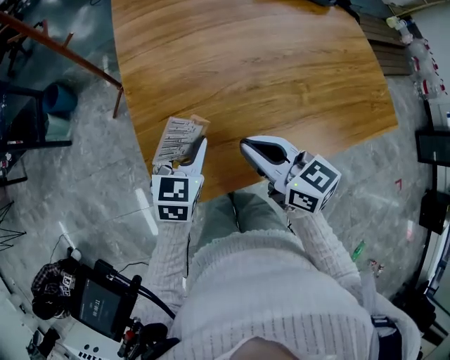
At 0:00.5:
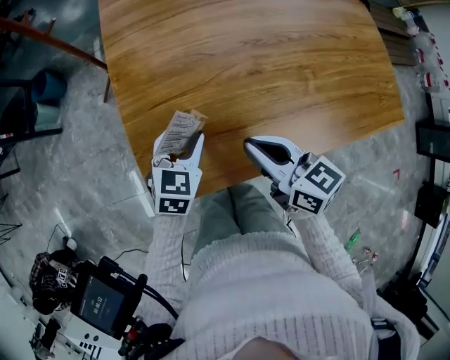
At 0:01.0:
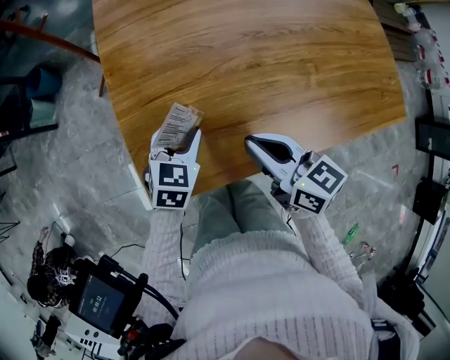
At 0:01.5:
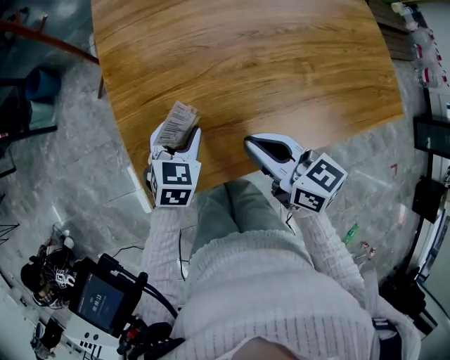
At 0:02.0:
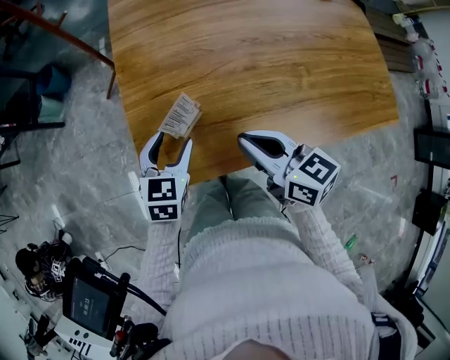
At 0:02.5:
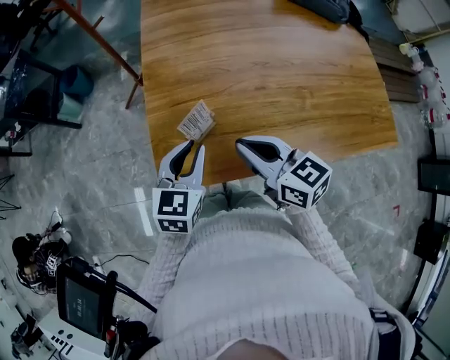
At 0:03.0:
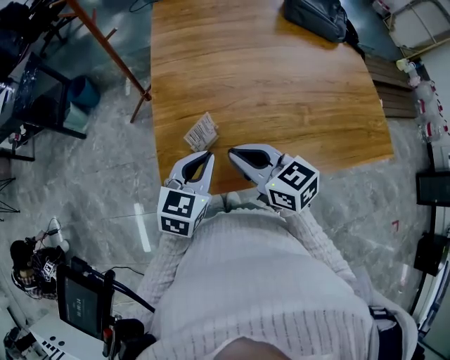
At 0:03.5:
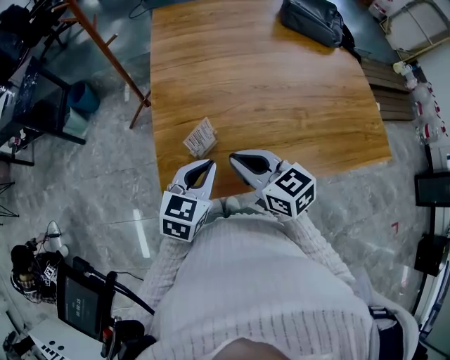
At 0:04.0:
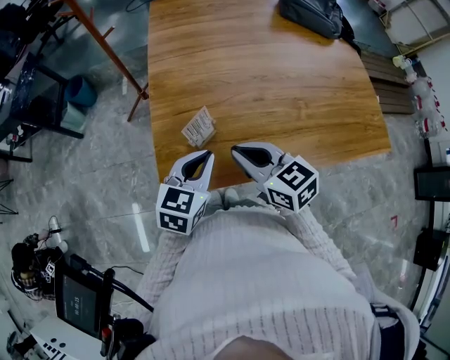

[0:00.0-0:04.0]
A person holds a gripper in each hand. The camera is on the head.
0:00.0 to 0:02.0: The left gripper shifts by some 5 cm.
0:02.0 to 0:04.0: The left gripper moves upward, approximately 10 cm, and closes up. The right gripper shifts by about 5 cm.

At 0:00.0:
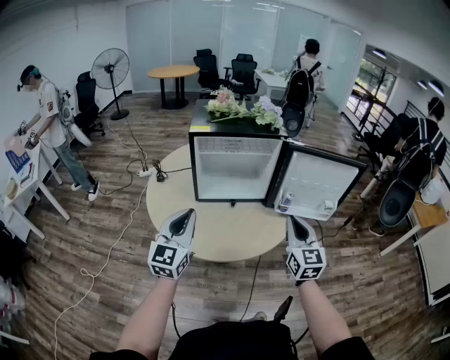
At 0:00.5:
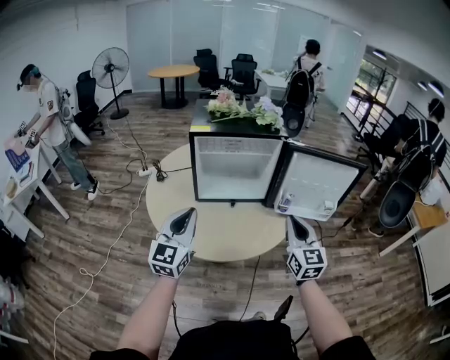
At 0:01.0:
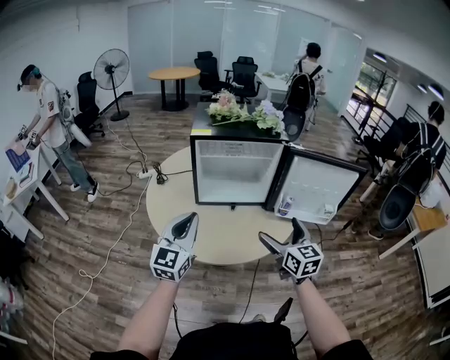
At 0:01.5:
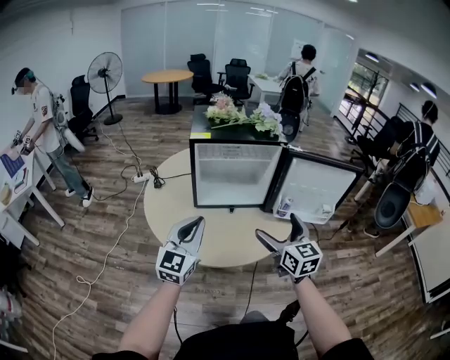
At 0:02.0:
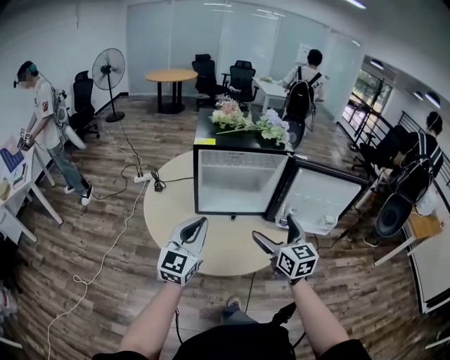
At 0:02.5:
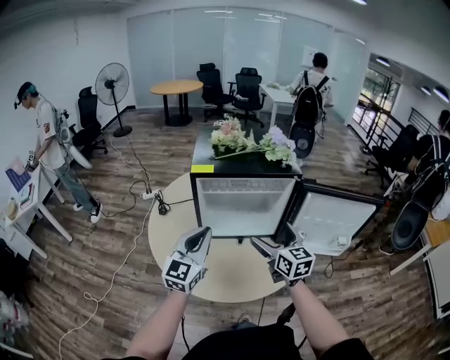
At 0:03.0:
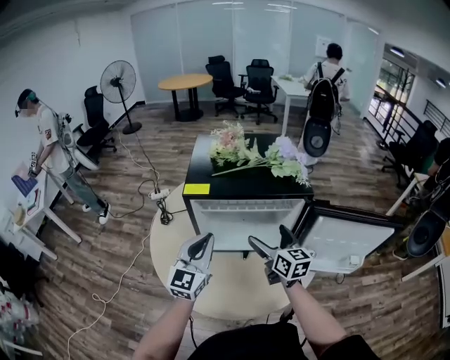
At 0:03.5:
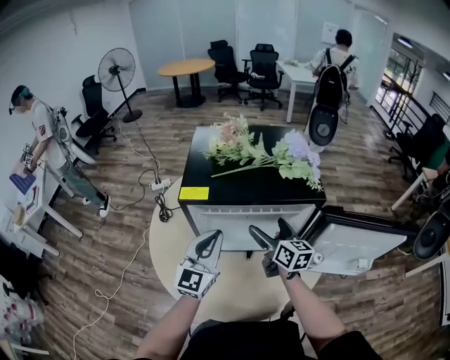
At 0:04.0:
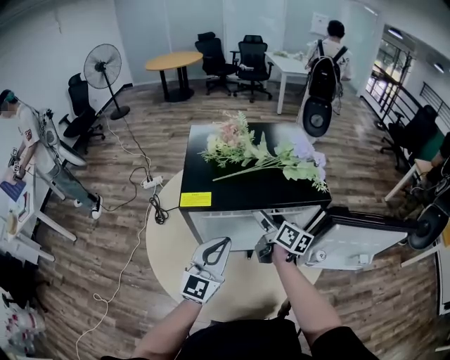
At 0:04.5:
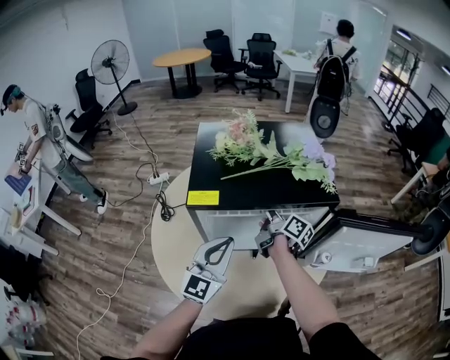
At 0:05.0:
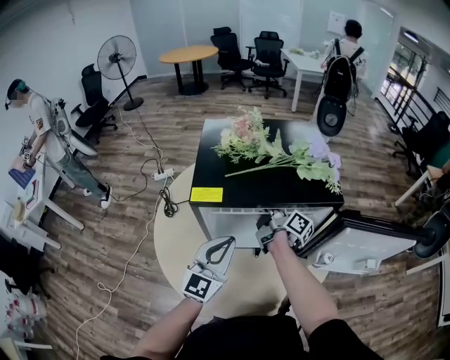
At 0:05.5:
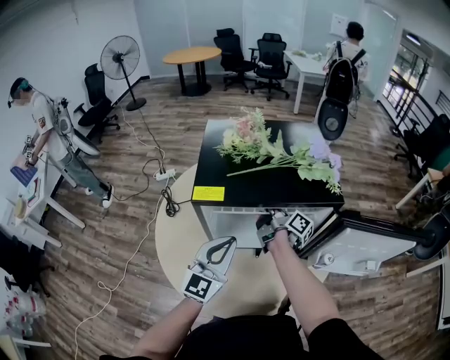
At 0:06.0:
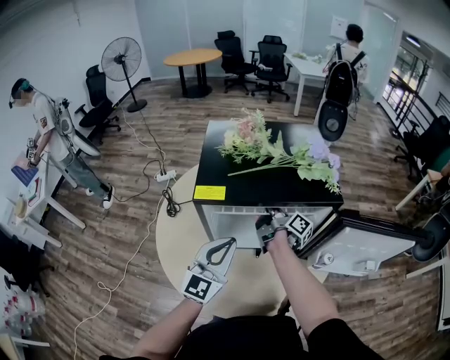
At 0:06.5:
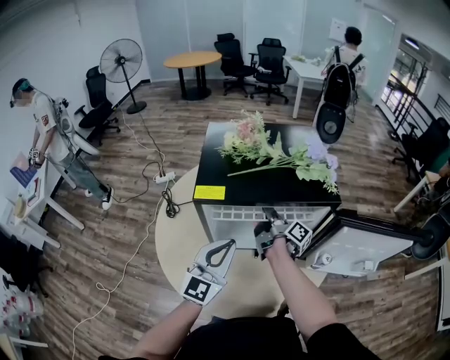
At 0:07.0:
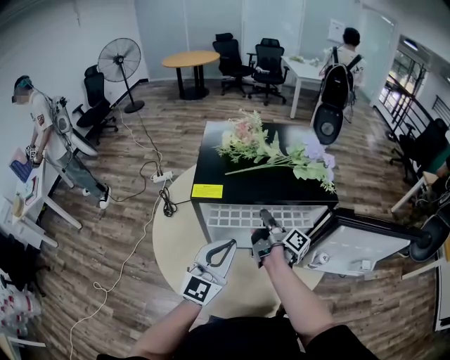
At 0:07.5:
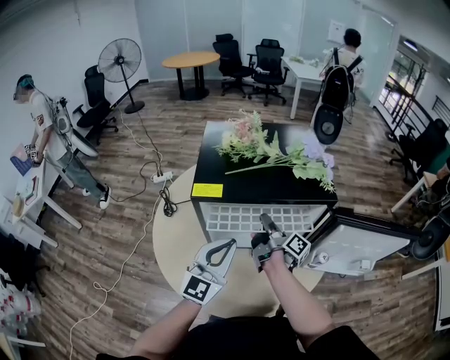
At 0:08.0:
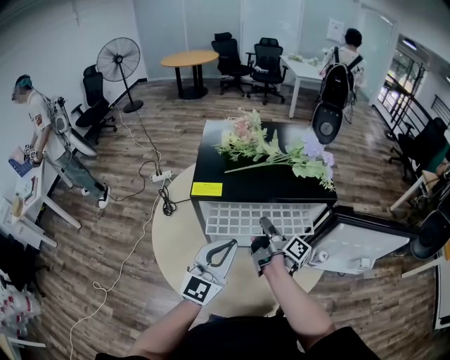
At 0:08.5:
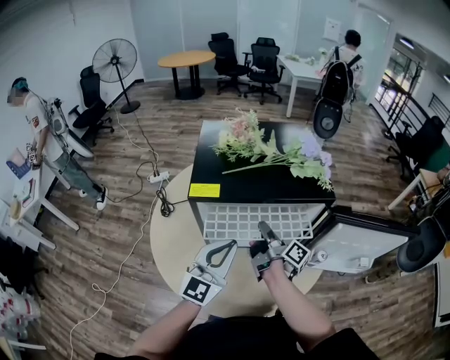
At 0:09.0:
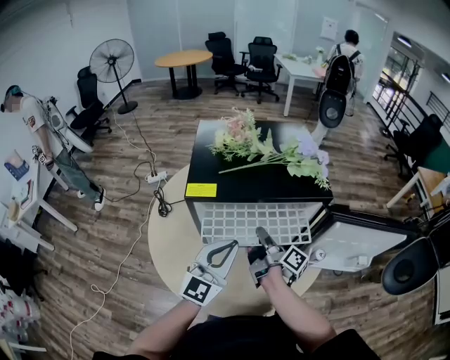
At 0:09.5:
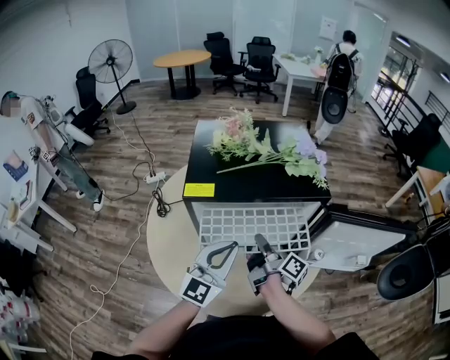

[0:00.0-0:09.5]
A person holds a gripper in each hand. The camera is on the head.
0:00.0 to 0:02.0: The right gripper heads to the left and forward, covering some 10 cm, and opens its fingers.
0:02.0 to 0:04.0: The grippers both shift forward by some 30 cm. The right gripper rotates around the line of its fingers by about 40 degrees, clockwise from behind.
0:04.0 to 0:05.5: The right gripper moves about 5 cm, changes its angle by some 30 degrees, and closes.
0:05.5 to 0:07.5: The right gripper moves backward, about 5 cm.
0:07.5 to 0:09.5: The right gripper is displaced backward by about 10 cm.

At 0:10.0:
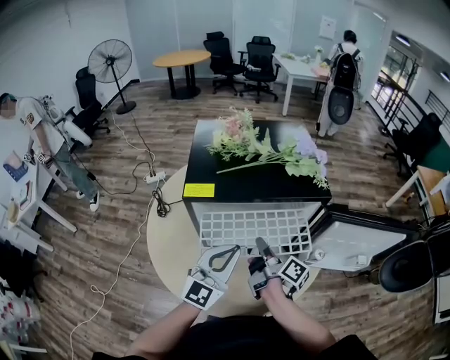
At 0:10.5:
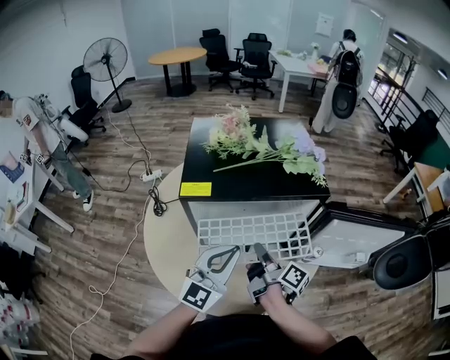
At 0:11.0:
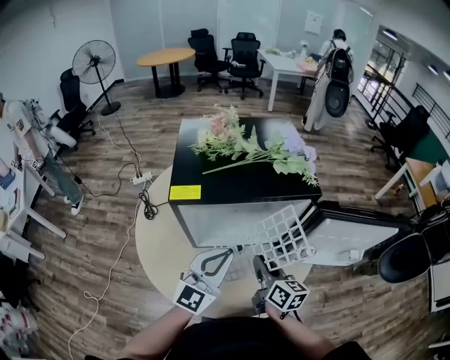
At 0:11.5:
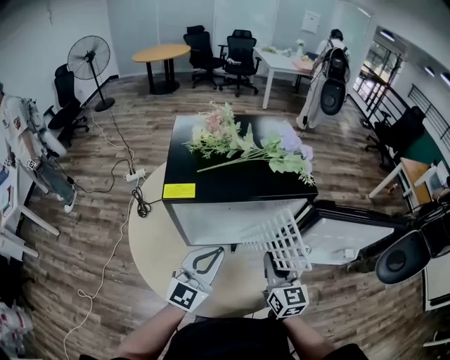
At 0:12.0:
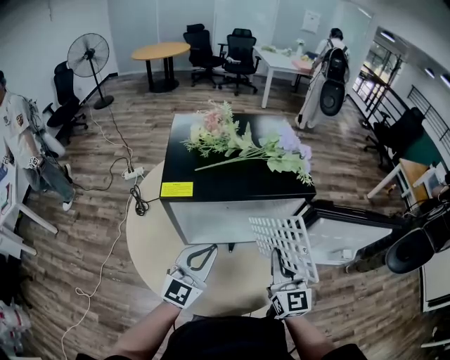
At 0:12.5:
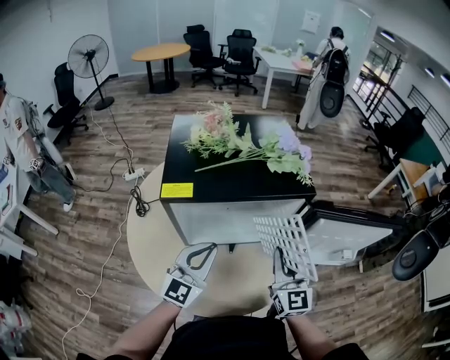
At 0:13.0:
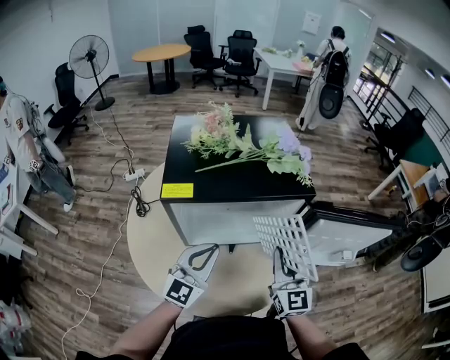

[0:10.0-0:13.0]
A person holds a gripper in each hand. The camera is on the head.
0:10.0 to 0:11.5: The right gripper heads to the right, covering roughly 5 cm, and rotates around the line of its fingers by about 70 degrees, counterclockwise from behind.
0:11.5 to 0:13.0: The right gripper shifts by roughly 5 cm.

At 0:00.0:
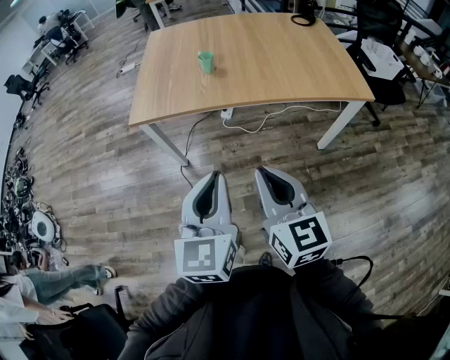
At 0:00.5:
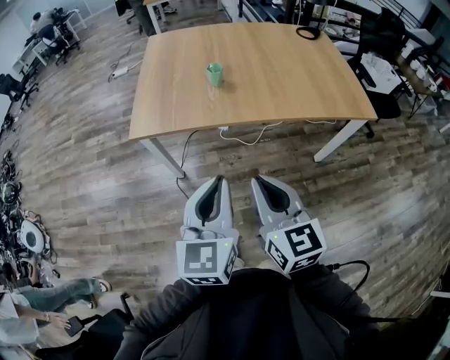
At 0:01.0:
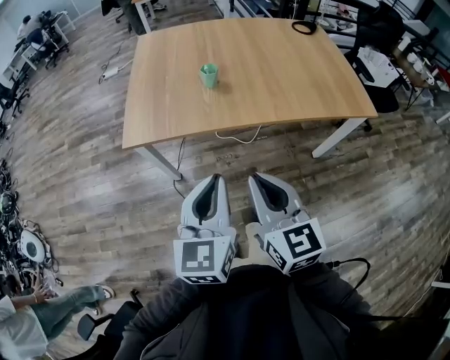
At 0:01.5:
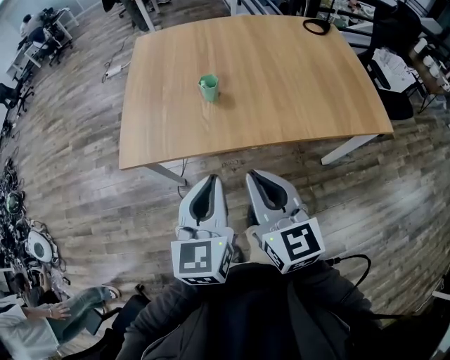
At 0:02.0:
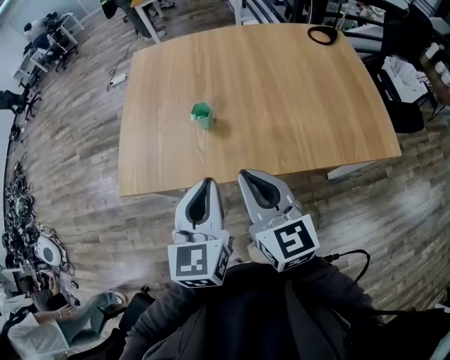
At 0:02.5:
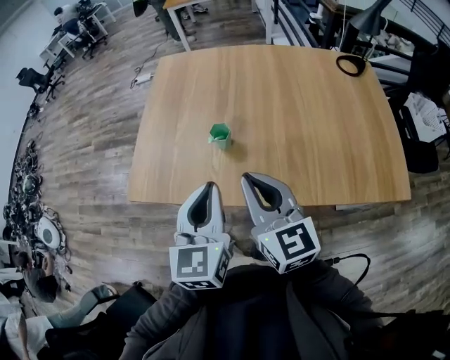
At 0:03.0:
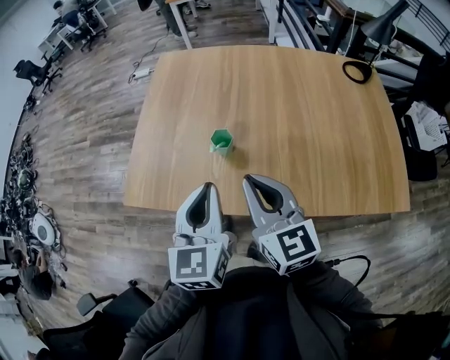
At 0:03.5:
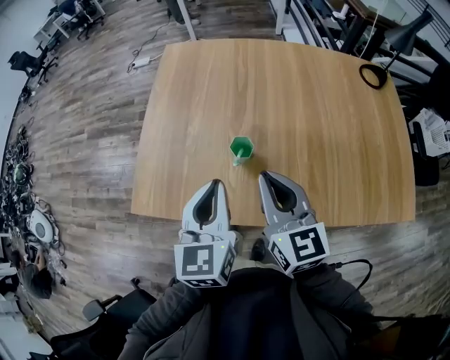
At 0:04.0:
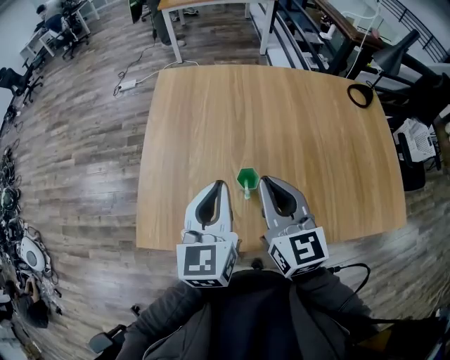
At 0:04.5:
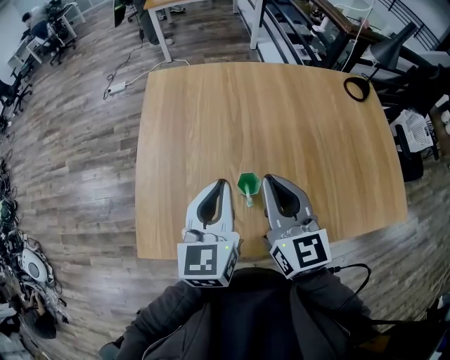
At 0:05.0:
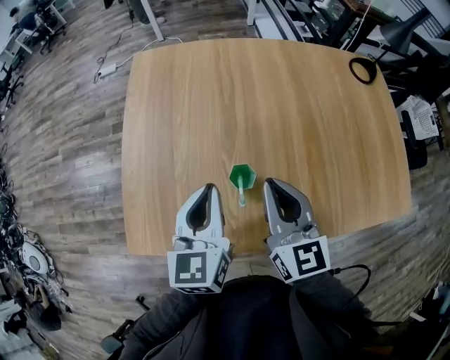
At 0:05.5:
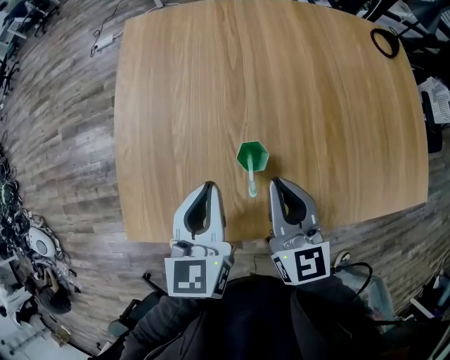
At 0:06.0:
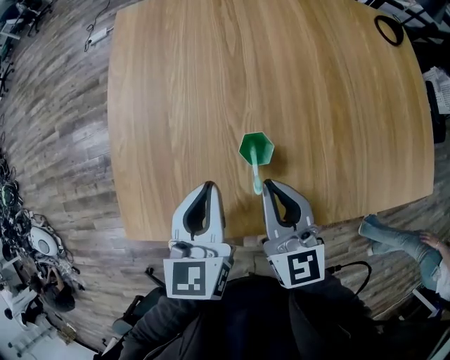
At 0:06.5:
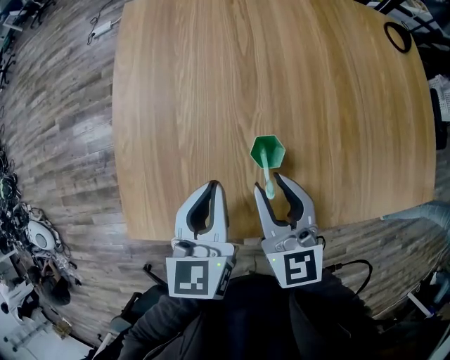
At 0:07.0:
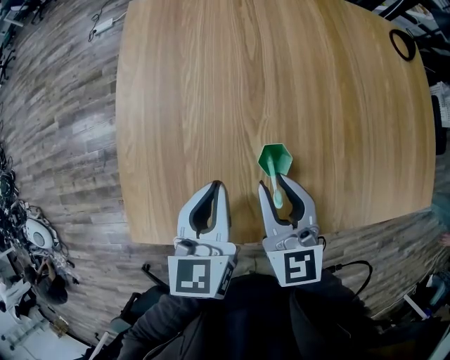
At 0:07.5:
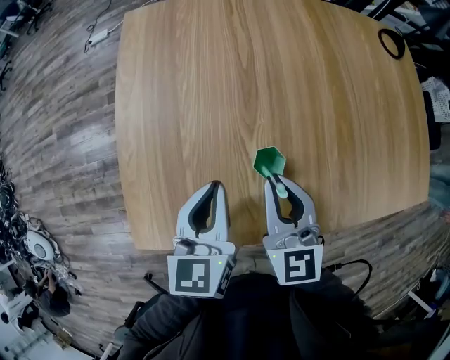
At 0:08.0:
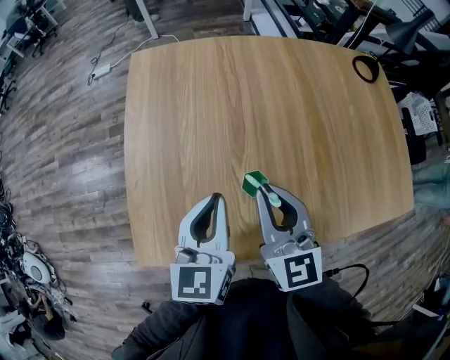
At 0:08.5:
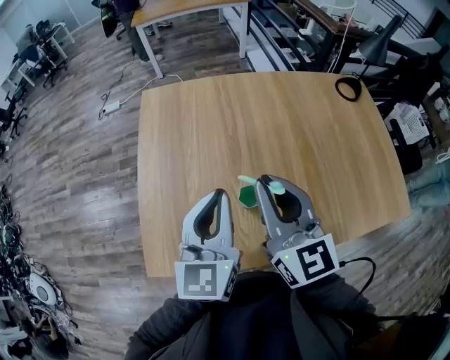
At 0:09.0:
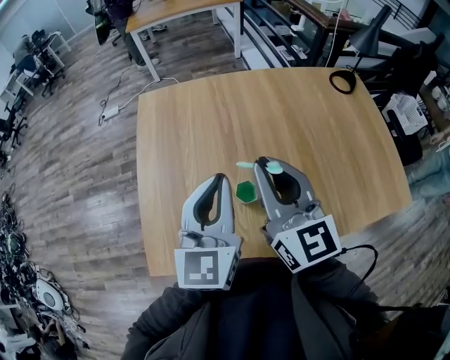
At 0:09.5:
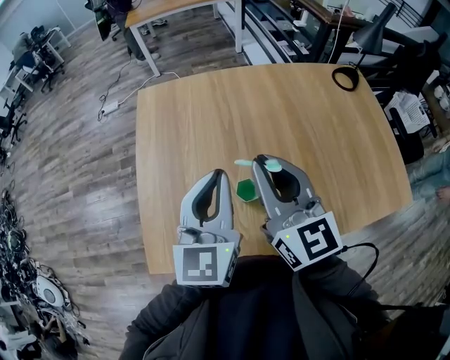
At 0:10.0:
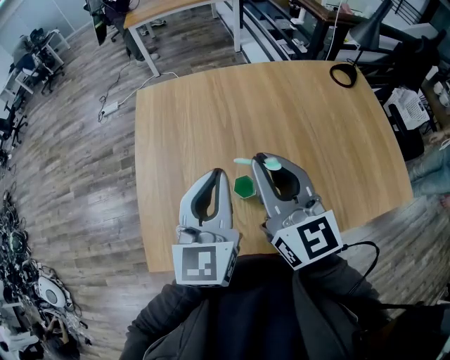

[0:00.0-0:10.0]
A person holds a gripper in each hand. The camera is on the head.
0:00.0 to 0:02.0: Both grippers move forward, about 35 cm.
0:02.0 to 0:04.0: The grippers both shift forward by some 20 cm.
0:04.0 to 0:06.0: Both grippers travel together downward, roughly 15 cm.
0:06.0 to 0:08.0: Both grippers move upward, some 10 cm. The right gripper opens, then closes again.
0:08.0 to 0:10.0: Both grippers travel together upward, some 10 cm.
